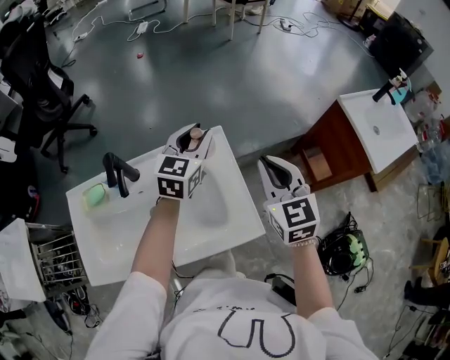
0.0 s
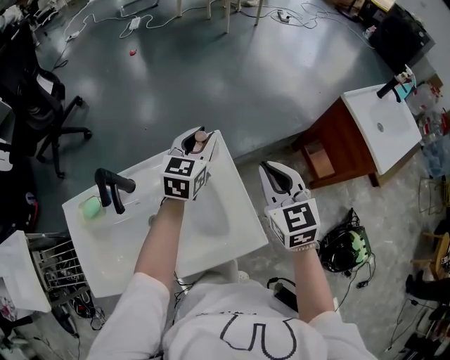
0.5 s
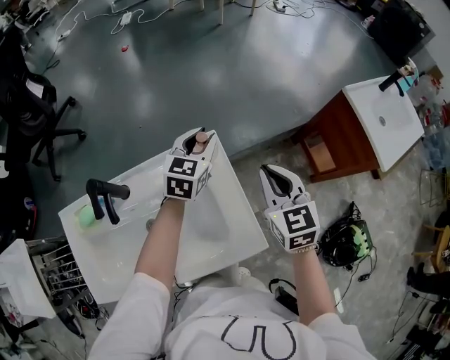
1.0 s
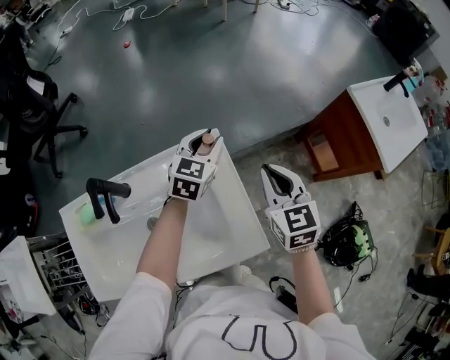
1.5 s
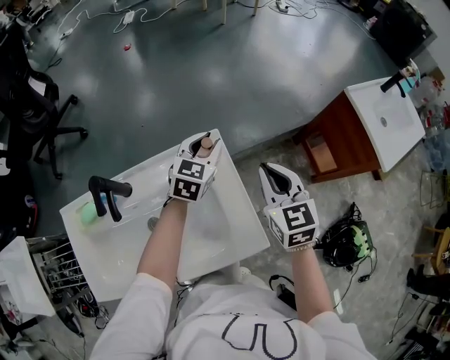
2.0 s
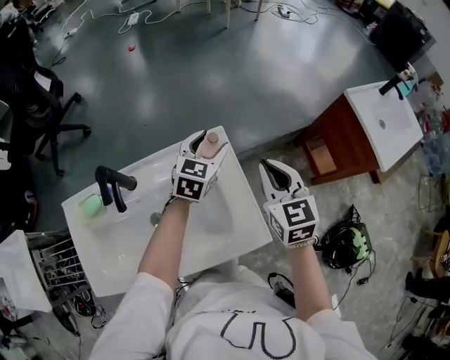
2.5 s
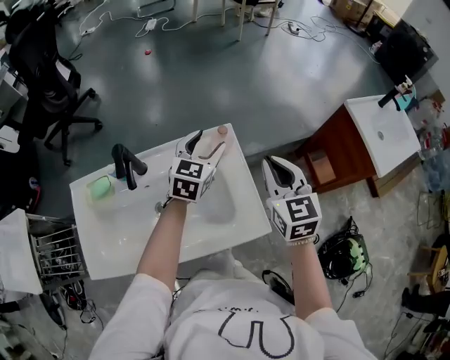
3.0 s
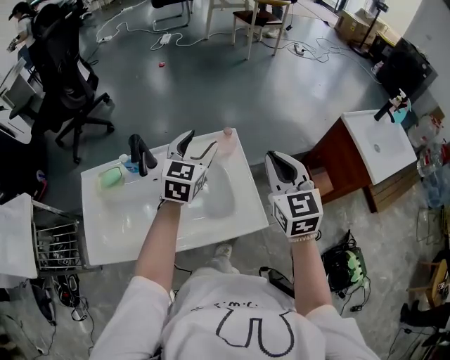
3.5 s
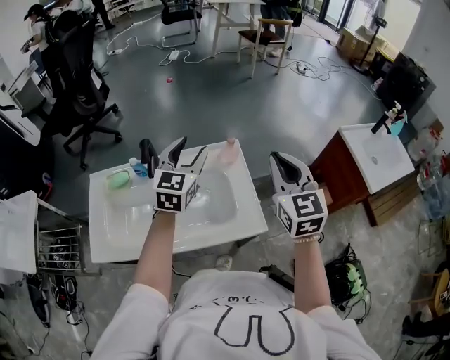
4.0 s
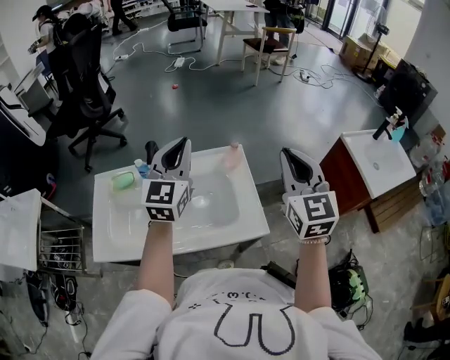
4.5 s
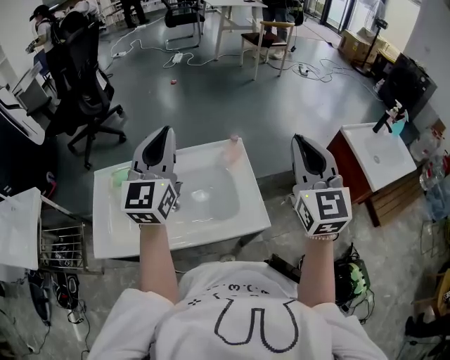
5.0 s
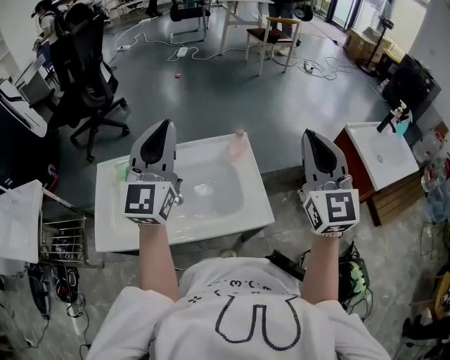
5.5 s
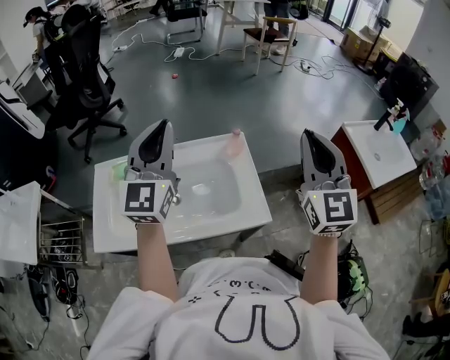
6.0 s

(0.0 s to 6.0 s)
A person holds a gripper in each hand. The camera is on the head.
0.0 s - 2.0 s: The right gripper goes approximately 5 cm downward. Meanwhile the left gripper shifts some 10 cm downward and forward.
2.0 s - 4.0 s: The right gripper heads upward and backward, covering approximately 20 cm, while the left gripper travels upward, backward and to the left by about 25 cm, turns by about 30 degrees, and opens its fingers.
4.0 s - 6.0 s: The right gripper shifts about 10 cm upward. Meanwhile the left gripper moves upward, backward and to the left, some 15 cm, rotates some 20 degrees, and closes up.

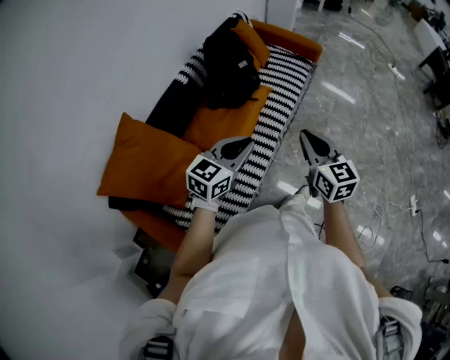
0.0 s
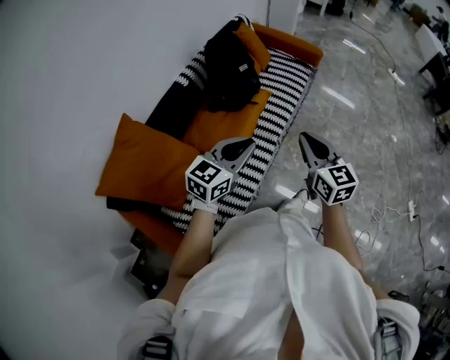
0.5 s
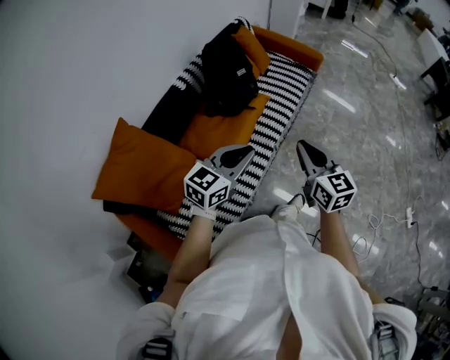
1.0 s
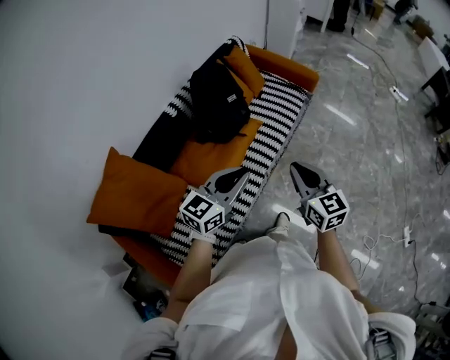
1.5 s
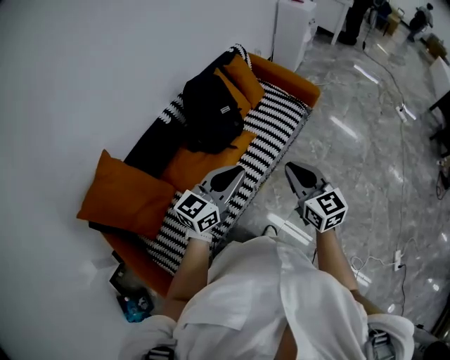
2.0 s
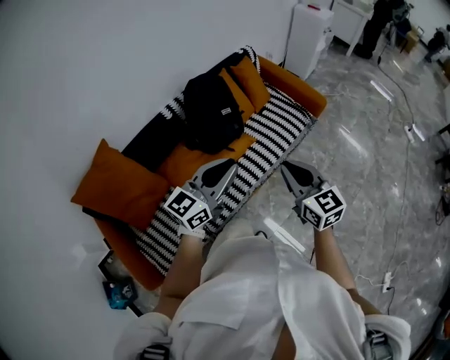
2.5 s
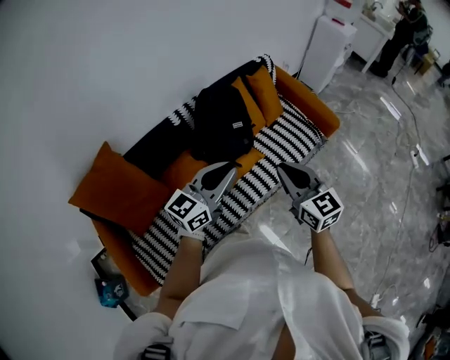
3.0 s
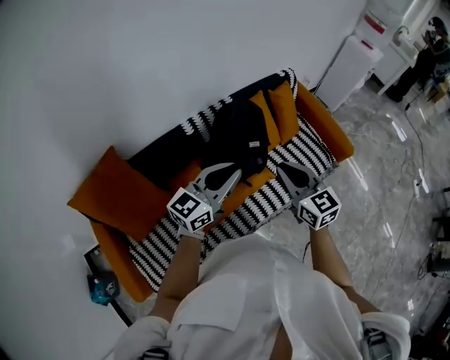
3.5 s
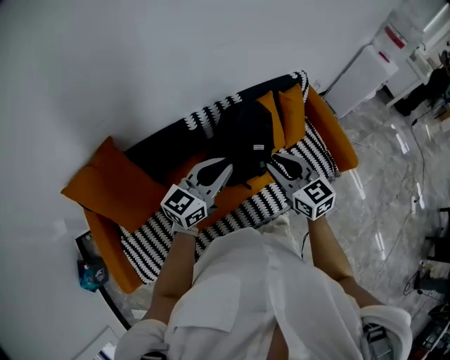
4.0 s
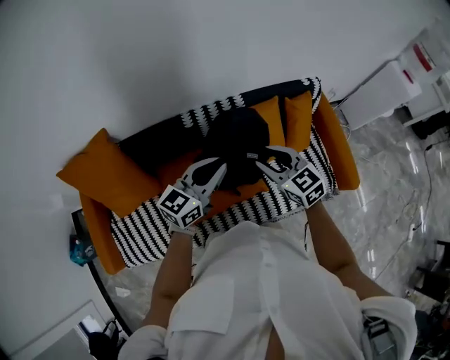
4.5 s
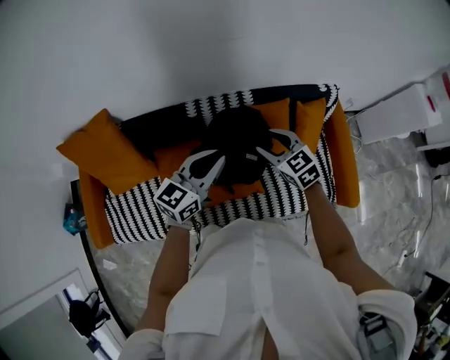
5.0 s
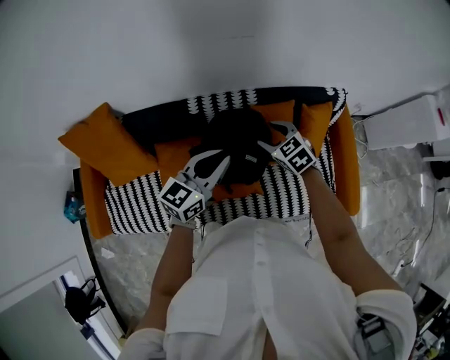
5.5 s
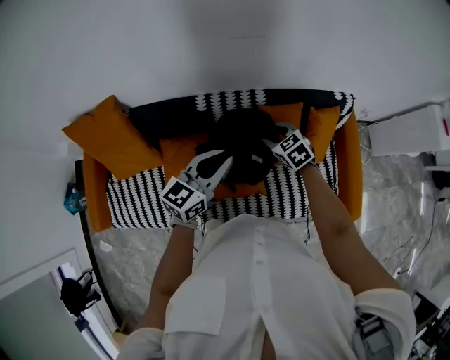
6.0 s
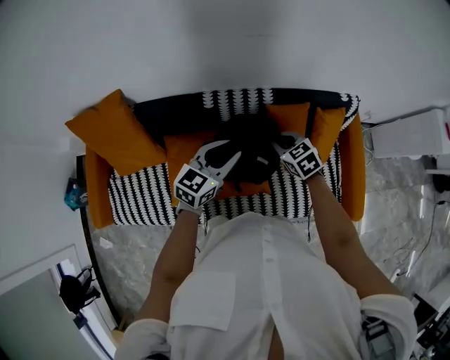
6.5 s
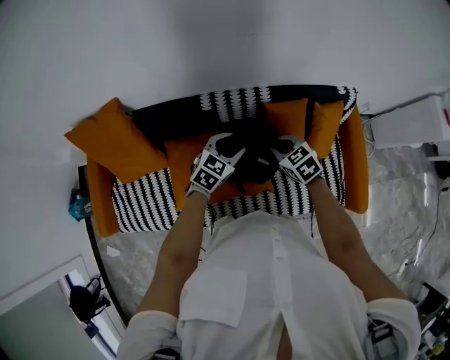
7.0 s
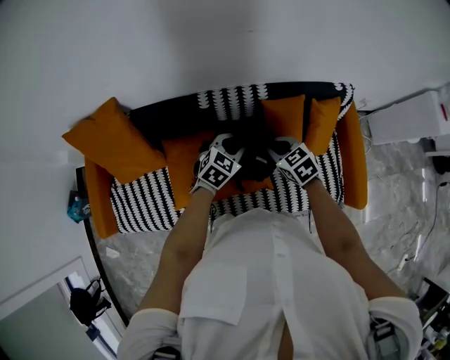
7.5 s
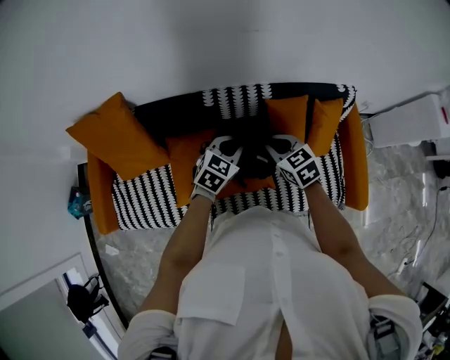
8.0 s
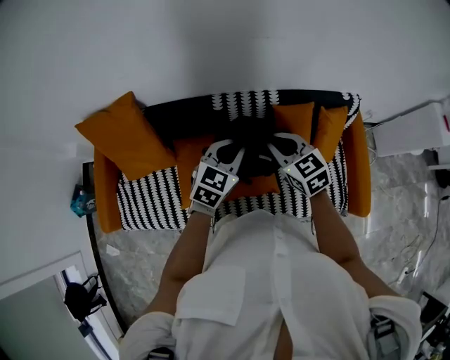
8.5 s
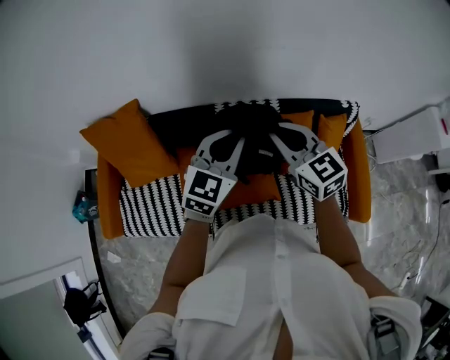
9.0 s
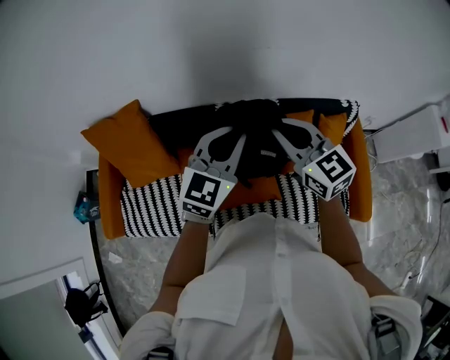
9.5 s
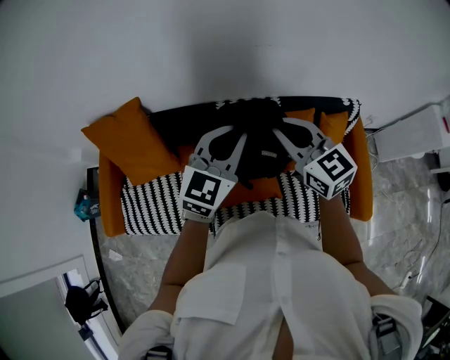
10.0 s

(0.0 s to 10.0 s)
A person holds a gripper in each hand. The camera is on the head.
0.0 s - 2.0 s: The grippers both shift forward and to the right by roughly 20 cm.
2.0 s - 4.0 s: The right gripper shifts by approximately 35 cm, and turns by roughly 30 degrees; the left gripper ends up approximately 30 cm from where it was, and turns by about 20 degrees.
4.0 s - 6.0 s: The right gripper moves approximately 30 cm, and changes its angle by approximately 40 degrees. Meanwhile the left gripper shifts by about 15 cm, and rotates about 30 degrees.
6.0 s - 8.0 s: The left gripper travels downward by approximately 10 cm, swivels approximately 30 degrees, and opens and closes again, while the right gripper moves backward and upward, roughly 10 cm, and closes.
8.0 s - 10.0 s: The two grippers go approximately 20 cm upward. The right gripper changes its angle by about 30 degrees. The left gripper swivels roughly 30 degrees.

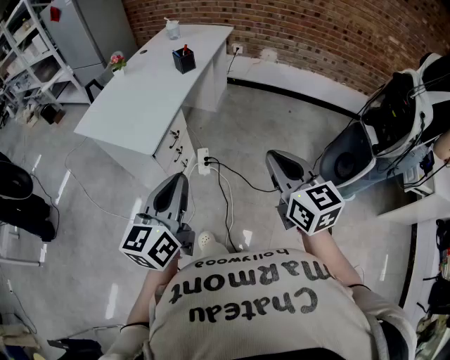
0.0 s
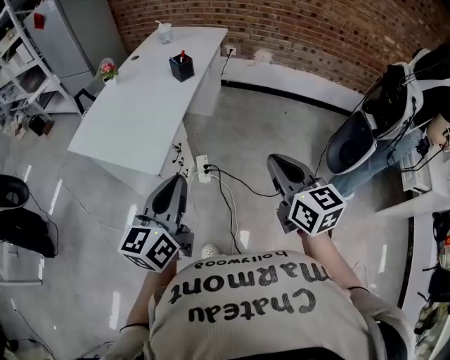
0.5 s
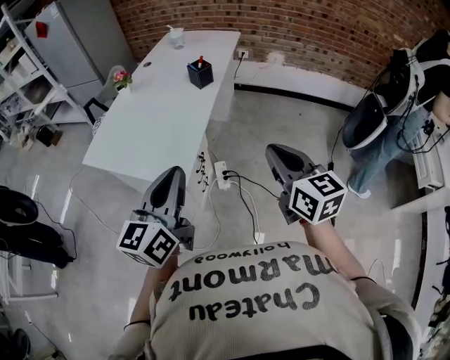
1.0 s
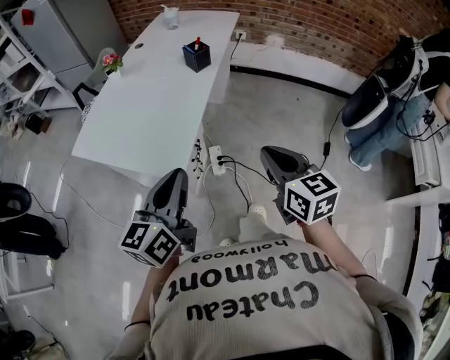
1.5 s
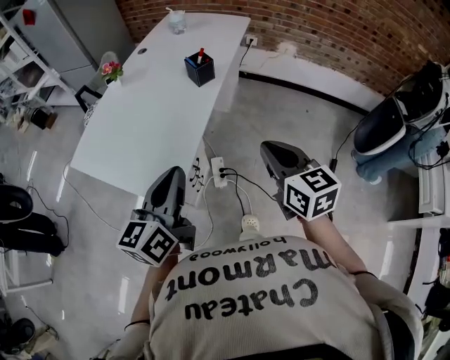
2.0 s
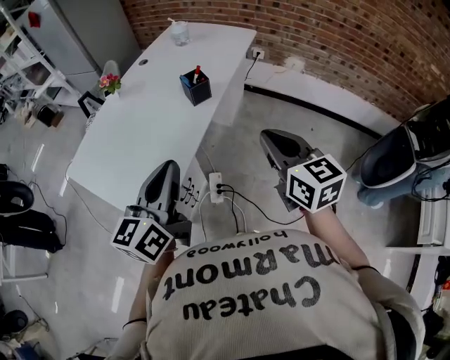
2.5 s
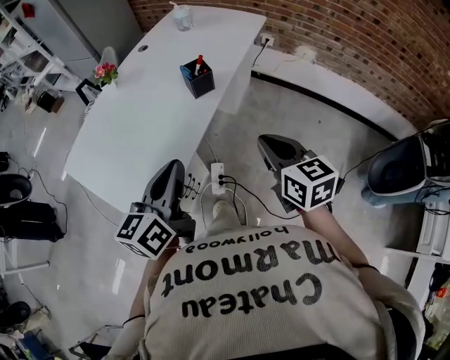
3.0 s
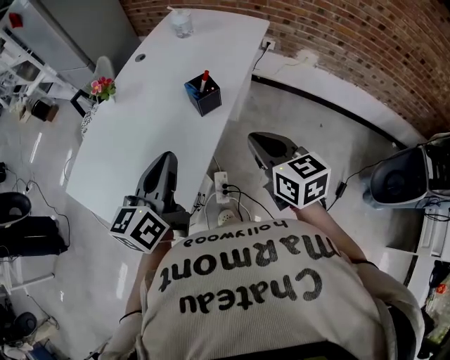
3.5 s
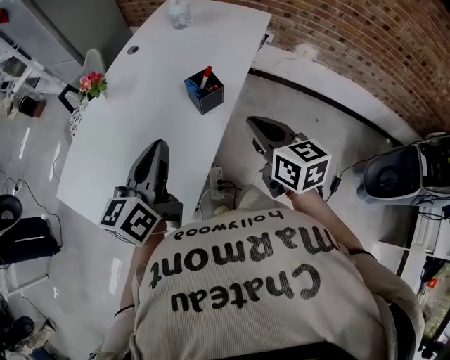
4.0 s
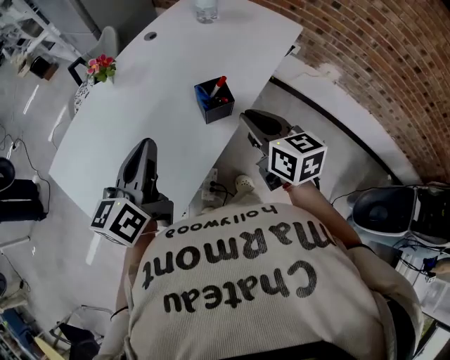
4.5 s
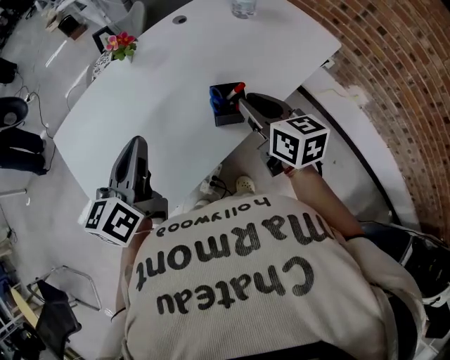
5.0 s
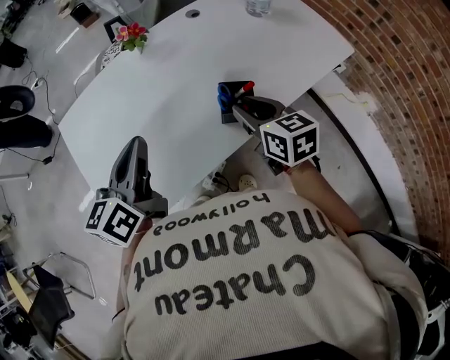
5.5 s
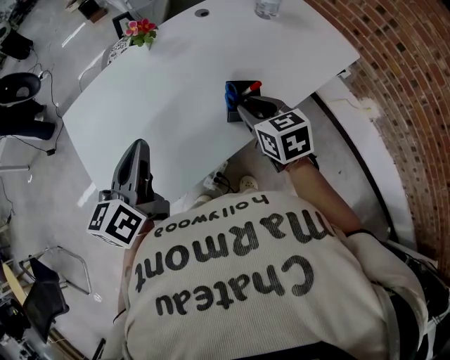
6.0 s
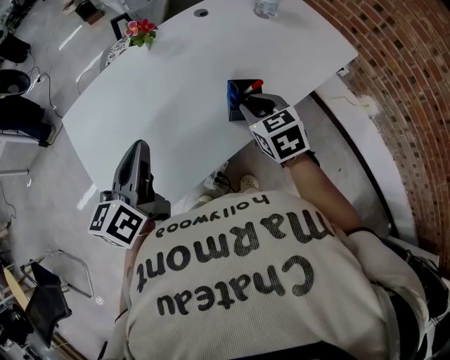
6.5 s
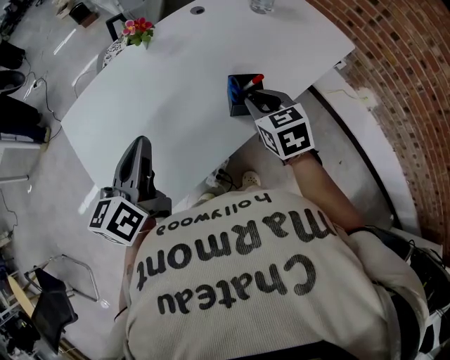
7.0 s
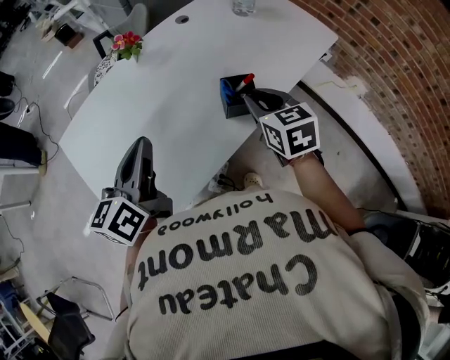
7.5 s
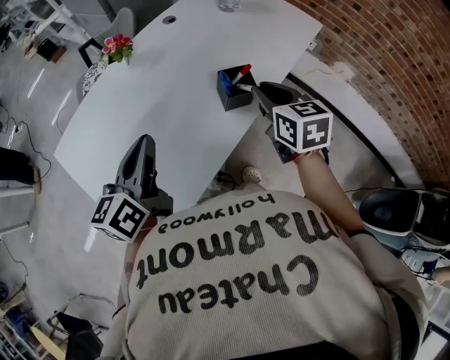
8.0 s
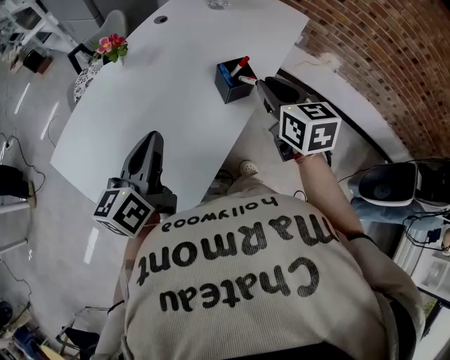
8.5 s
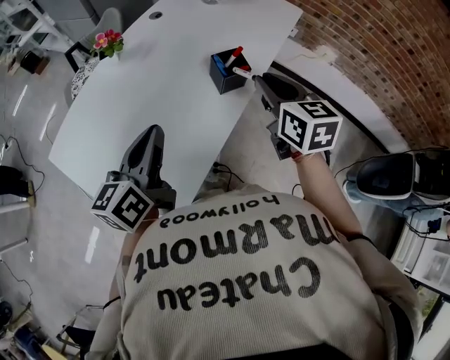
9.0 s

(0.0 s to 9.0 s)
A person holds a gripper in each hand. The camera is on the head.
0.0 s - 2.0 s: Both grippers move forward and to the left, some 30 cm.
2.0 s - 4.5 s: The two grippers go approximately 35 cm forward.
4.5 s - 7.0 s: The left gripper is displaced to the left by roughly 5 cm. The right gripper shifts approximately 10 cm forward and downward, and turns by about 30 degrees.
7.0 s - 9.0 s: The left gripper swivels roughly 30 degrees. Meanwhile the right gripper travels upward by about 10 cm, and changes its angle by about 30 degrees.

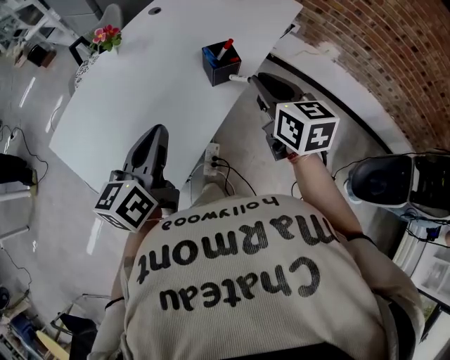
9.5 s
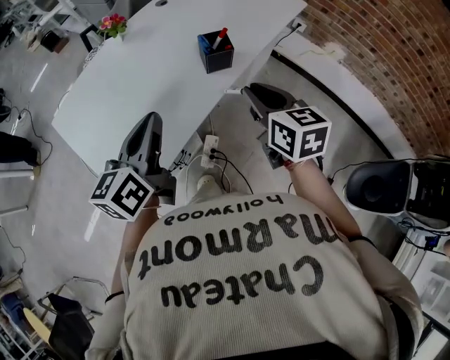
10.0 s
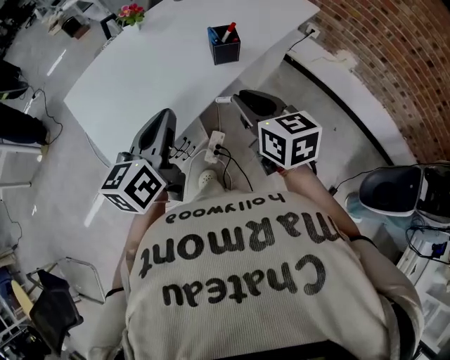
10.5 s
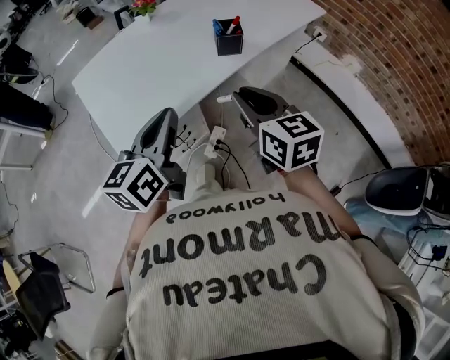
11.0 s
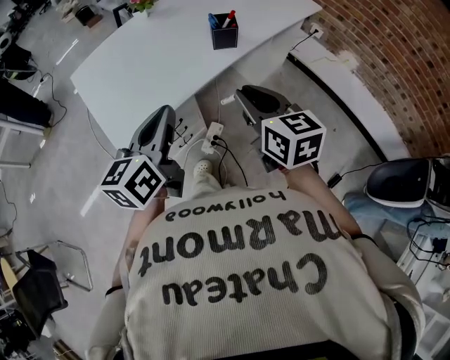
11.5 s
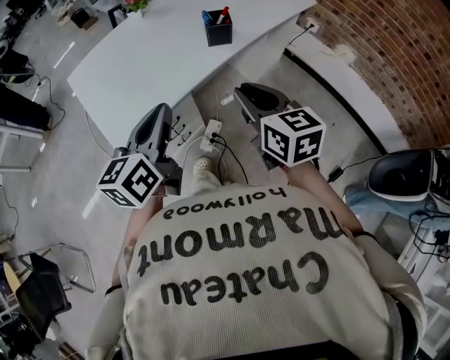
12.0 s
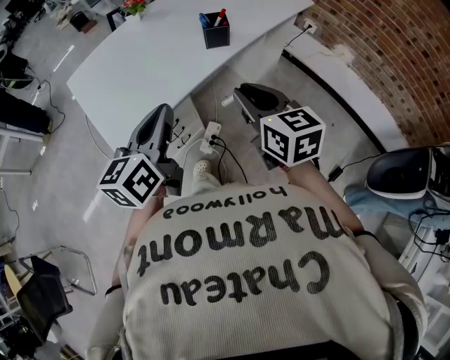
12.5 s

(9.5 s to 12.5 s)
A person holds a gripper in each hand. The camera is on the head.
9.5 s - 11.0 s: The grippers both shift backward by roughly 15 cm. The right gripper rotates approximately 20 degrees.
11.0 s - 12.5 s: The grippers make only small movements.
